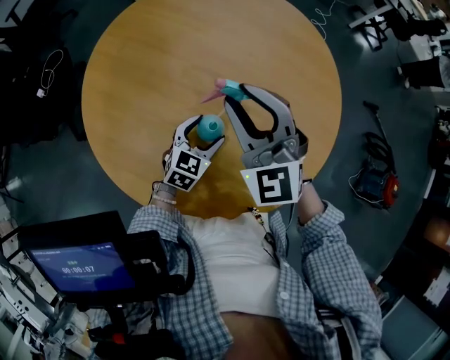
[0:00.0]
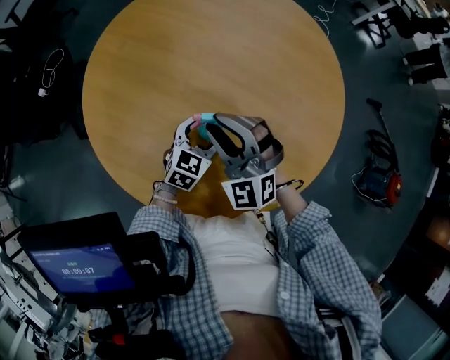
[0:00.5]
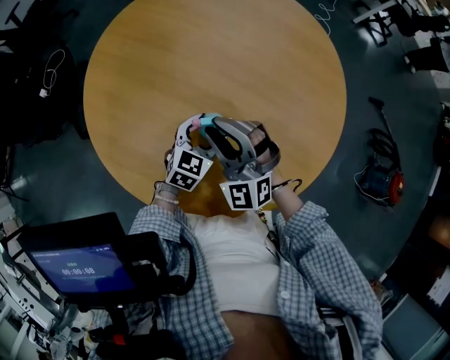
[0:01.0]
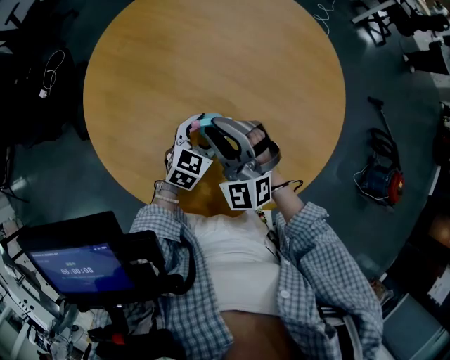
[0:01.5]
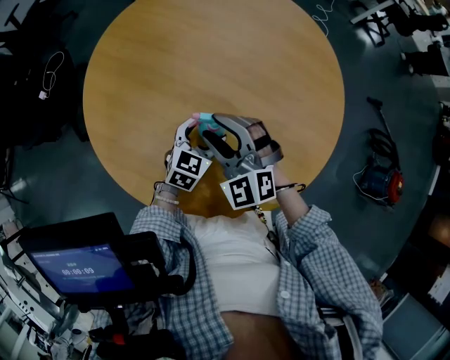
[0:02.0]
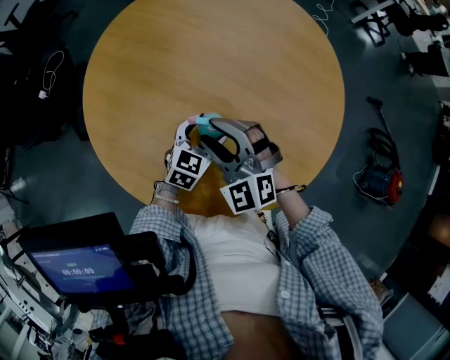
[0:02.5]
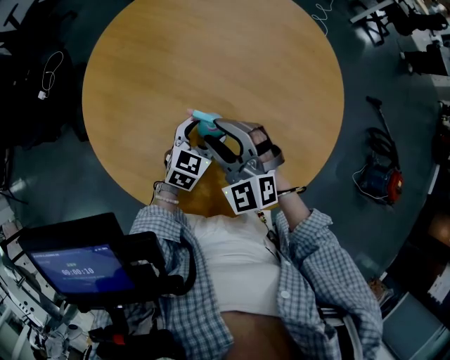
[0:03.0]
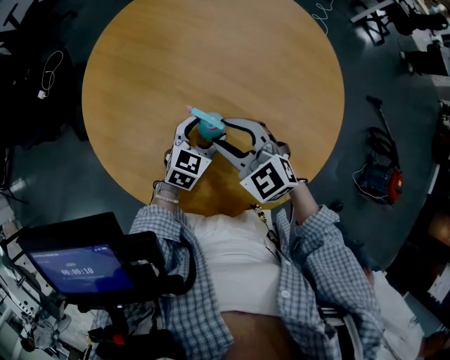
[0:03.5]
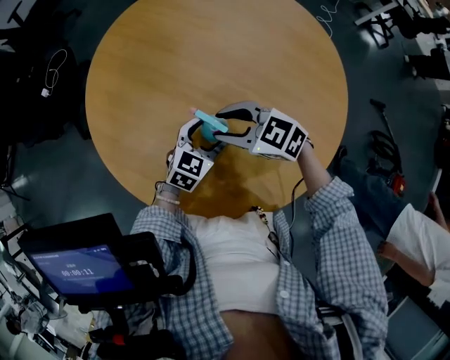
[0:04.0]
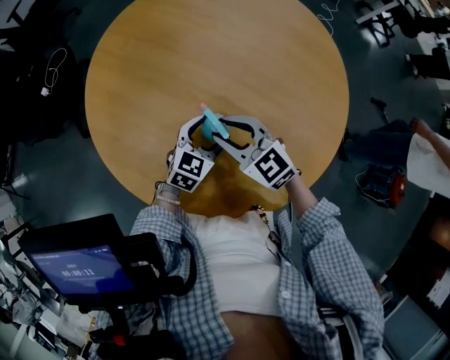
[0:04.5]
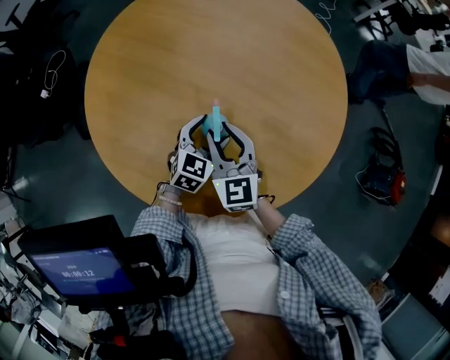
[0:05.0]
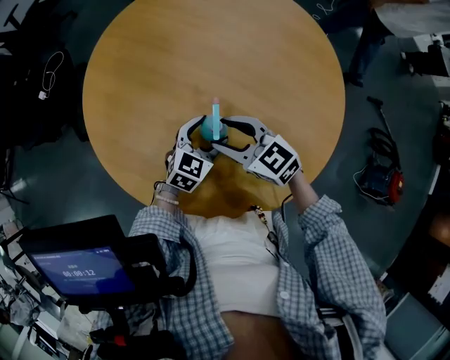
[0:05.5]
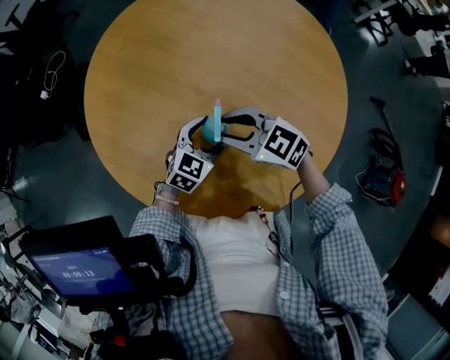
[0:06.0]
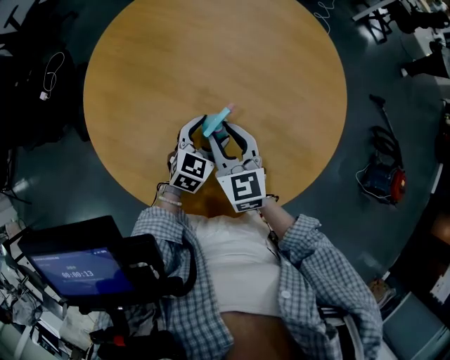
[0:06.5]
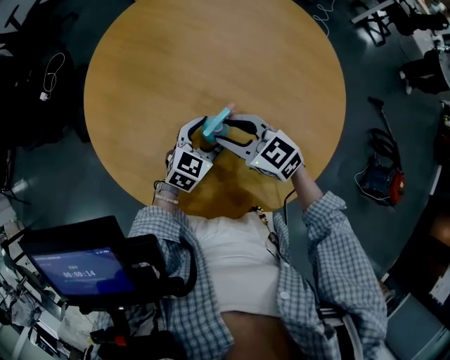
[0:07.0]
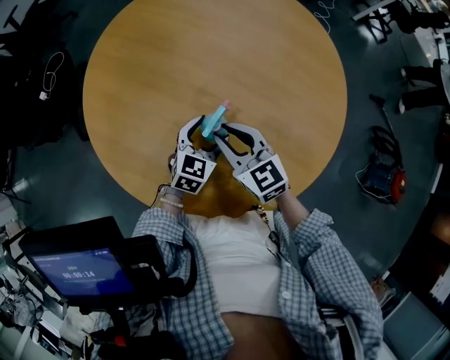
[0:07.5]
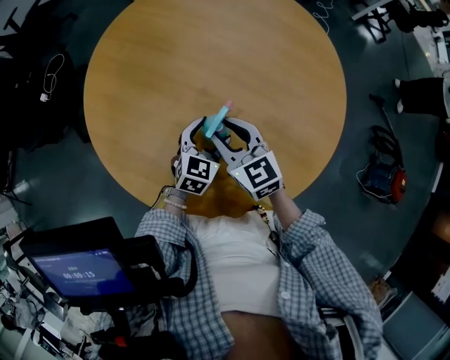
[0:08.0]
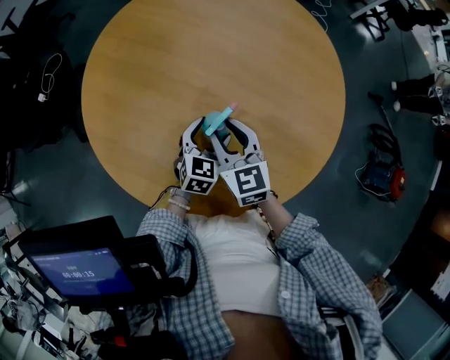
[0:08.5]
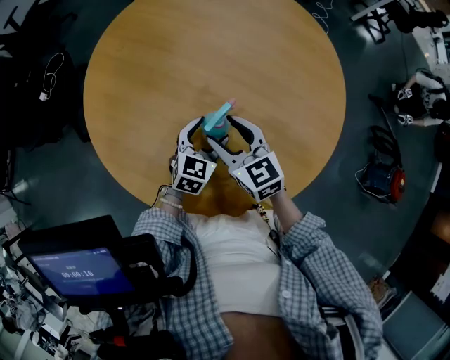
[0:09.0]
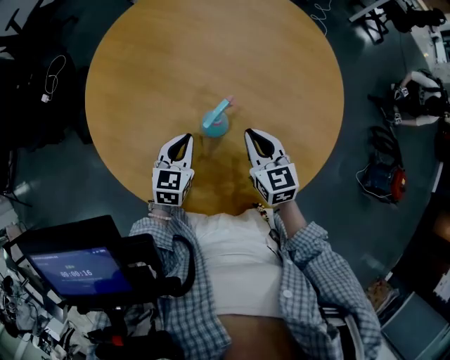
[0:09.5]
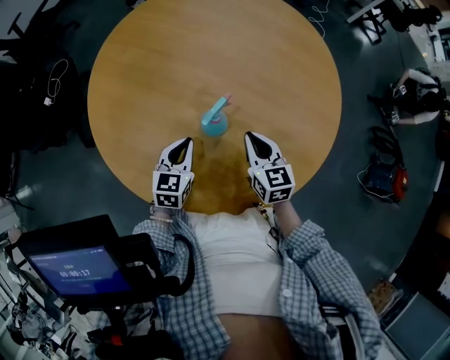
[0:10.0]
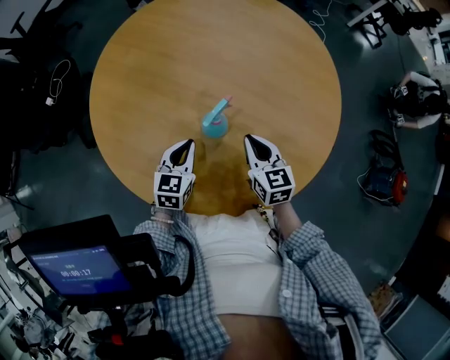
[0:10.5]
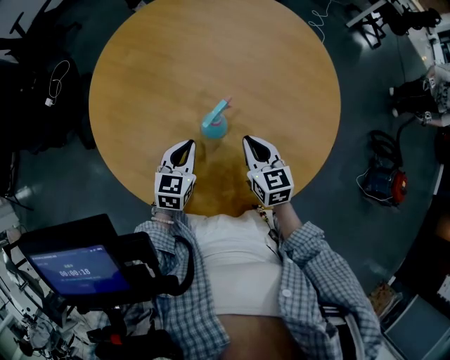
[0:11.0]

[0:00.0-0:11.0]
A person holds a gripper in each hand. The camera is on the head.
0:00.0 to 0:02.0: The right gripper moves downward and backward, approximately 10 cm.
0:02.0 to 0:03.5: The right gripper changes its angle by about 20 degrees.
0:03.5 to 0:05.5: The right gripper rotates approximately 20 degrees.
0:05.5 to 0:07.5: The right gripper closes its fingers.
0:07.5 to 0:09.0: The right gripper opens.
0:09.0 to 0:11.0: The left gripper goes about 5 cm to the left, and closes up, while the right gripper shifts roughly 10 cm to the right and downward, and closes its fingers.
